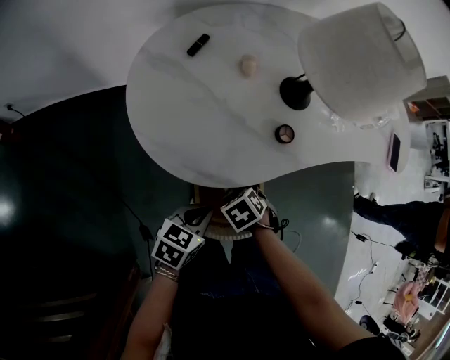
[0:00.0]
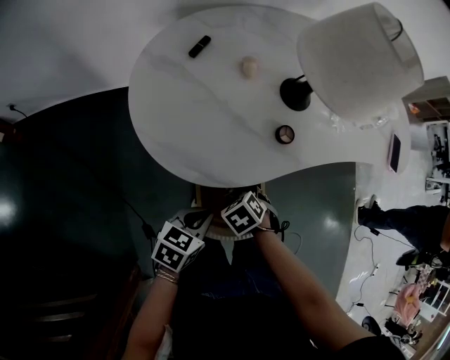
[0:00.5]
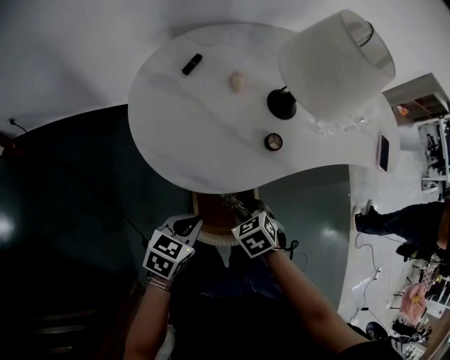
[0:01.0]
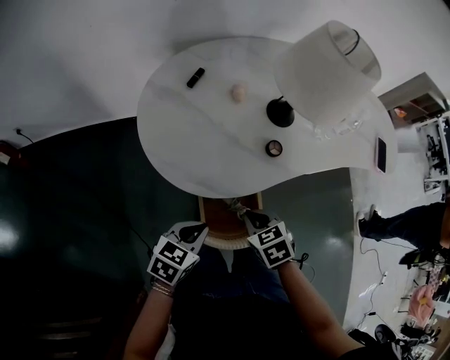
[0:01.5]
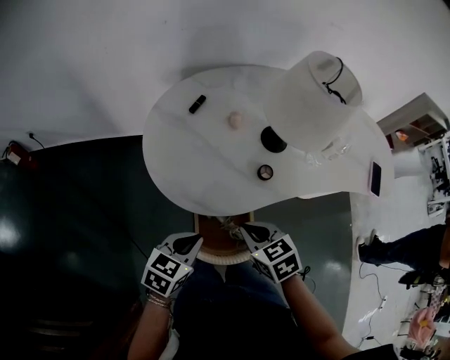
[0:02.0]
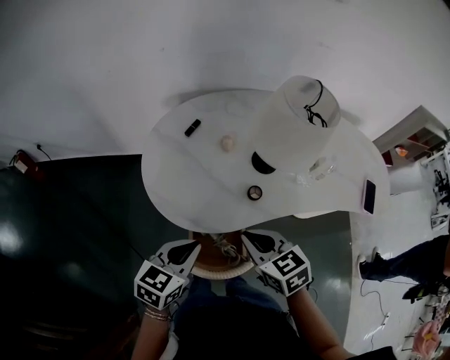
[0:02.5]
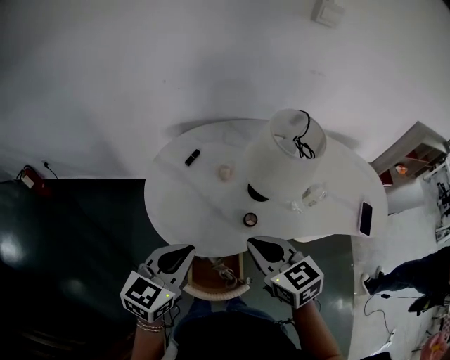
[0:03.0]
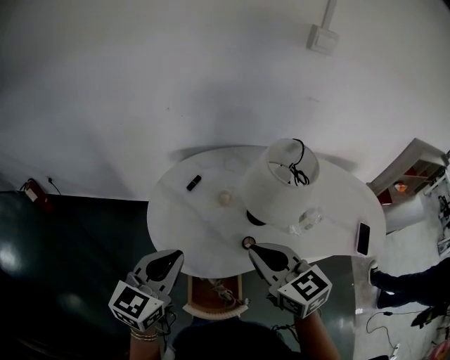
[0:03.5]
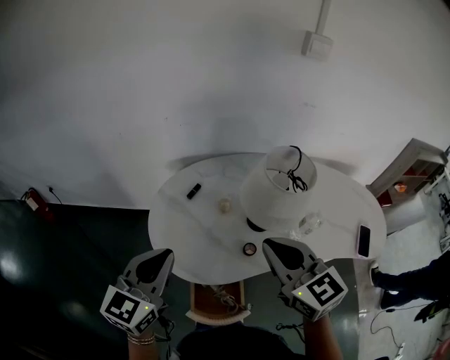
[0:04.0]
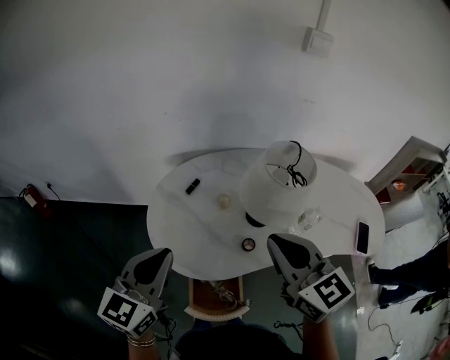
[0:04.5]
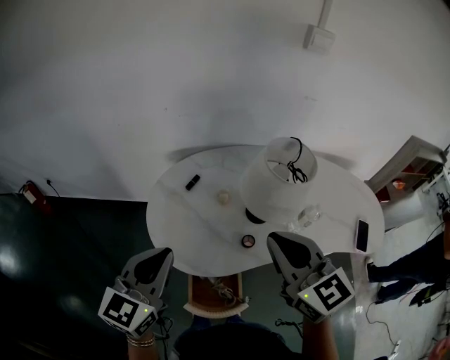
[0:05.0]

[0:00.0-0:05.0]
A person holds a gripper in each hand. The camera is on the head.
0:00.0 to 0:02.5: The right gripper heads upward, covering roughly 25 cm, points its fingers about 40 degrees further upward, and closes up, while the left gripper travels upward by some 15 cm, and rotates roughly 20 degrees.
0:02.5 to 0:05.0: The grippers both shift upward by roughly 20 cm. The left gripper rotates roughly 30 degrees, while the right gripper rotates approximately 30 degrees.

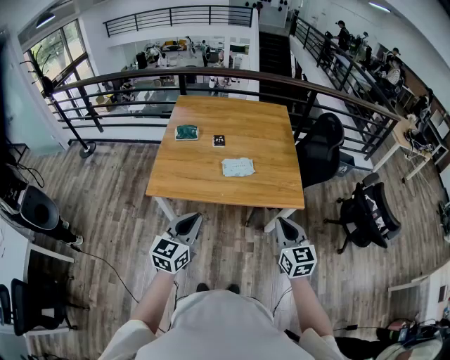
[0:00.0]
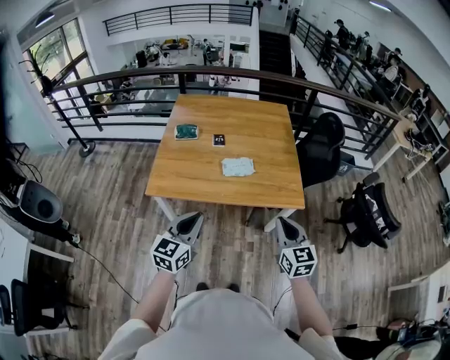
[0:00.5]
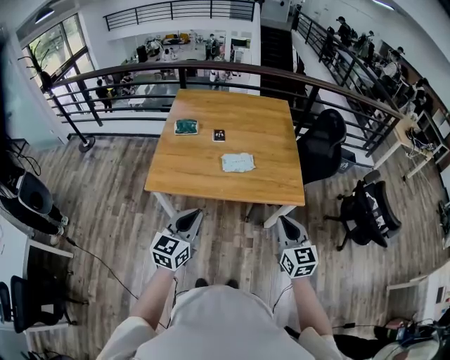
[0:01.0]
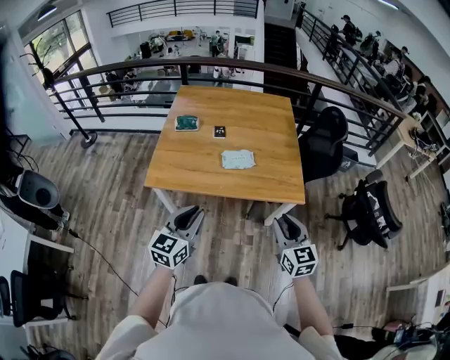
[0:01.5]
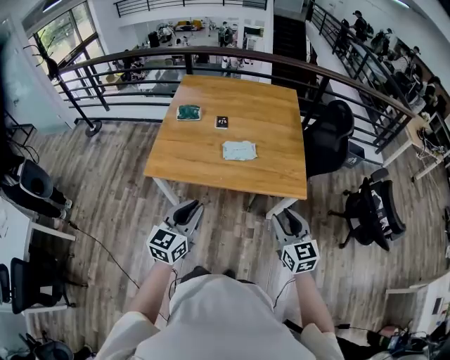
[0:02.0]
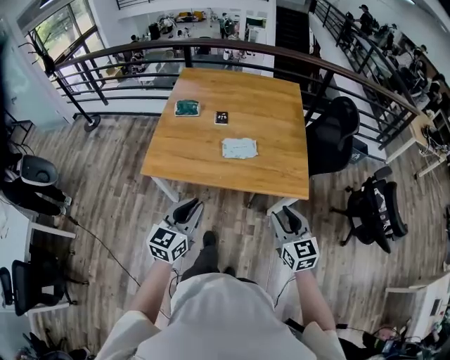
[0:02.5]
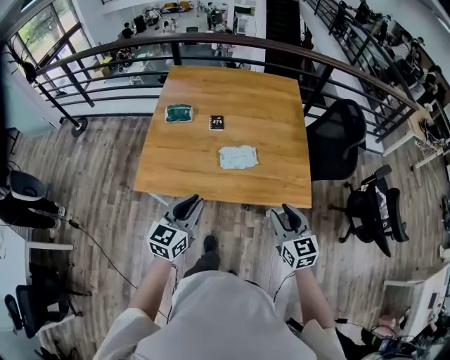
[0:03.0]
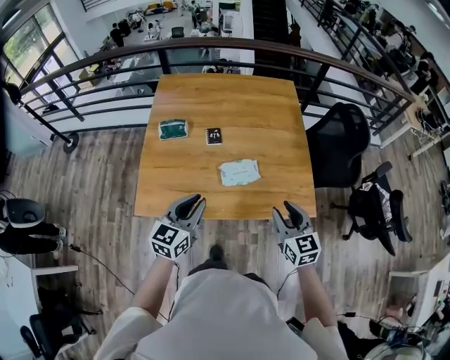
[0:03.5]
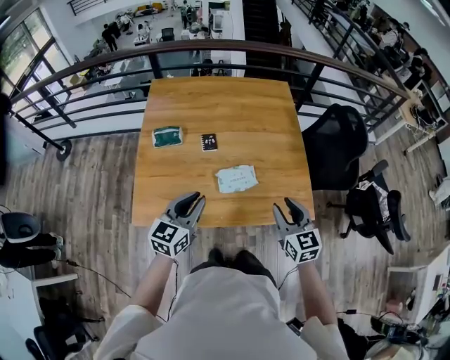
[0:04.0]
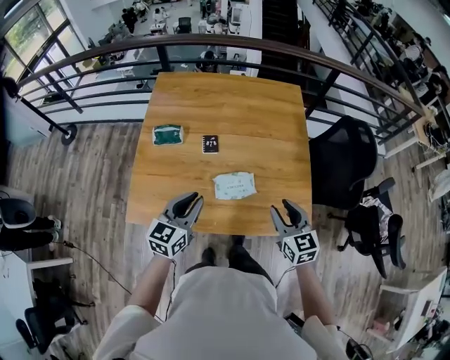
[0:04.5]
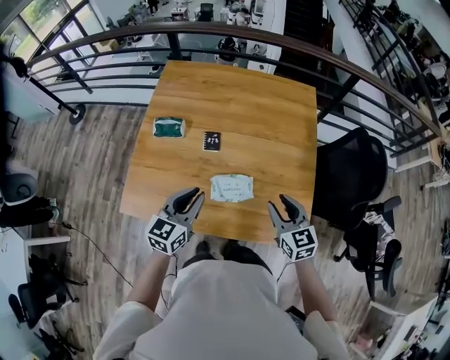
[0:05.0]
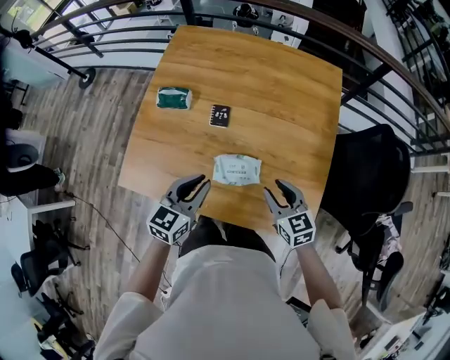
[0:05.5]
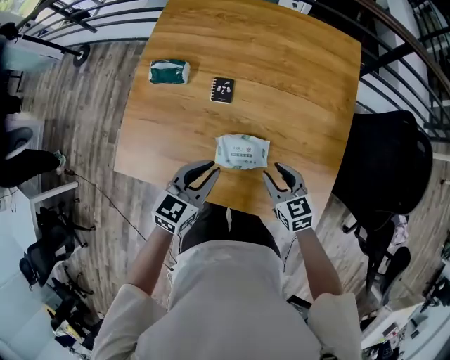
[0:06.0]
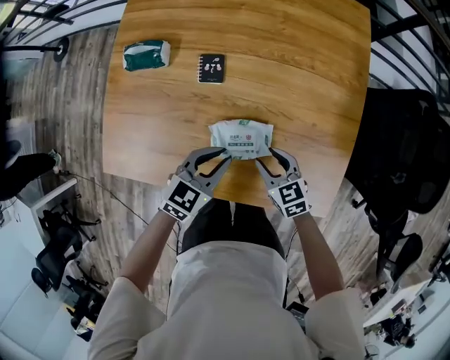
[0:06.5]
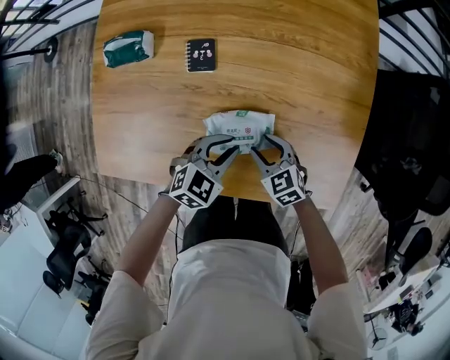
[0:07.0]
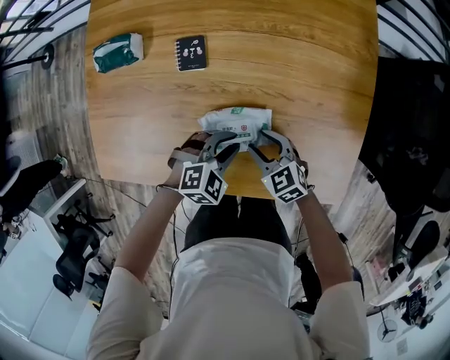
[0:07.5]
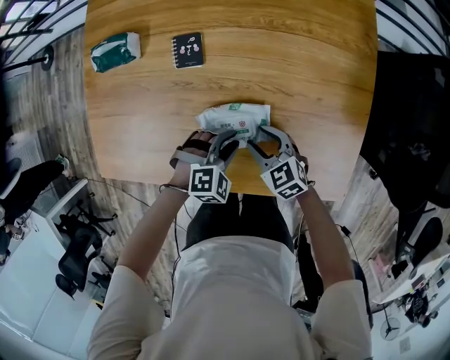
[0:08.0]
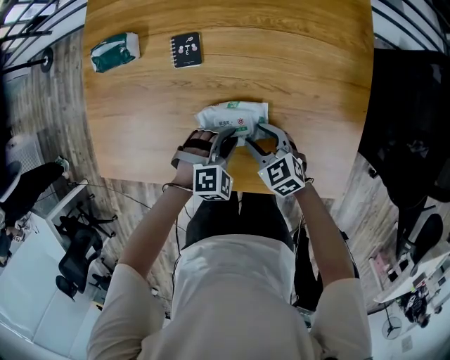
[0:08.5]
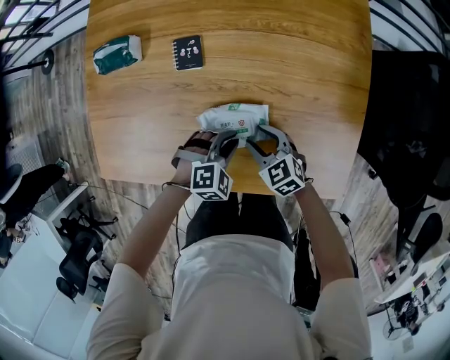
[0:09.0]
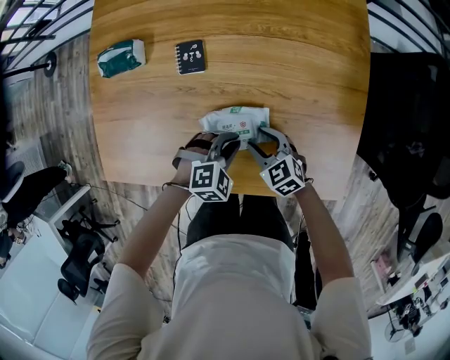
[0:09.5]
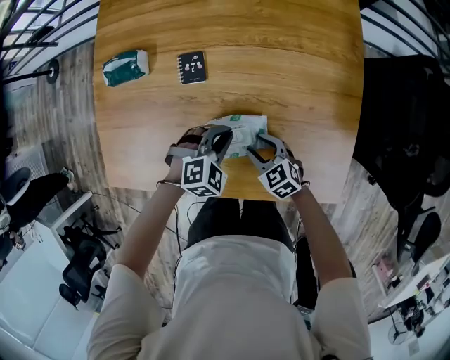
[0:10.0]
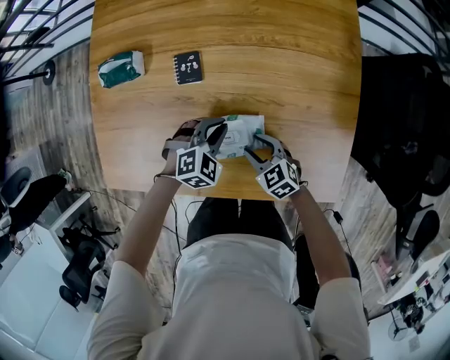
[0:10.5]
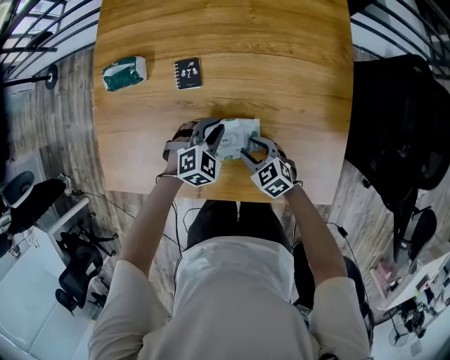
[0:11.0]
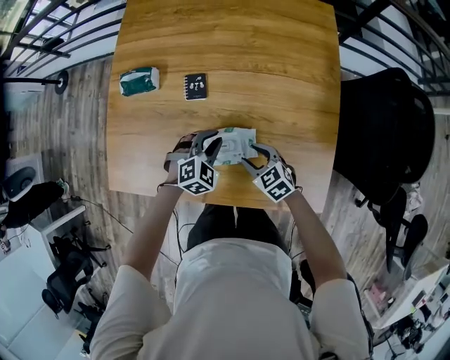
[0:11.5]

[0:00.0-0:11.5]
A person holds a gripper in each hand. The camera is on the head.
0:00.0 to 0:02.0: The right gripper opens its fingers.
0:02.0 to 0:04.0: Both grippers travel together forward, approximately 30 cm.
0:04.0 to 0:06.0: The left gripper moves downward, forward and to the right, roughly 20 cm. Meanwhile the right gripper shifts approximately 25 cm downward and forward, and rotates approximately 30 degrees.
0:06.0 to 0:07.5: Both grippers travel together downward, about 20 cm. The left gripper swivels roughly 50 degrees.
0:07.5 to 0:09.5: The grippers move only a little.
0:09.5 to 0:11.5: The left gripper shifts approximately 10 cm forward and upward. The right gripper heads upward, covering about 5 cm.

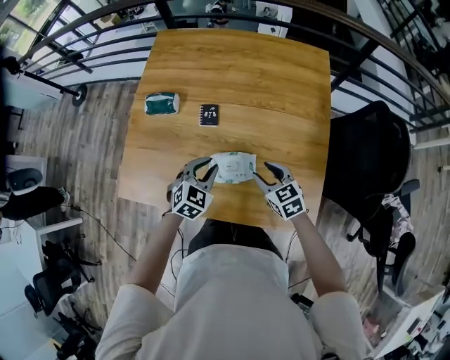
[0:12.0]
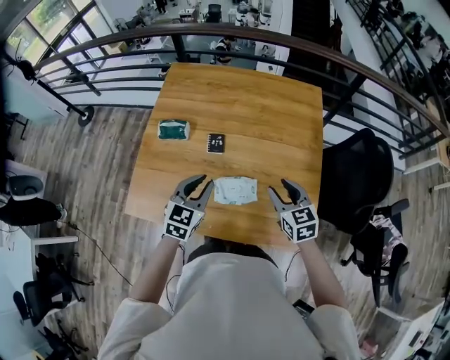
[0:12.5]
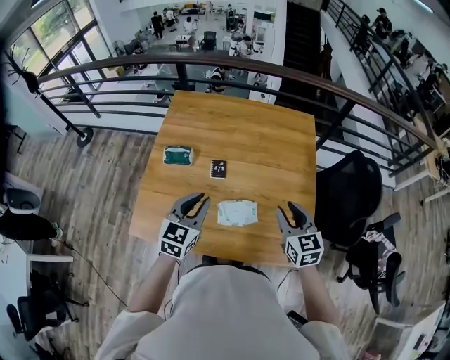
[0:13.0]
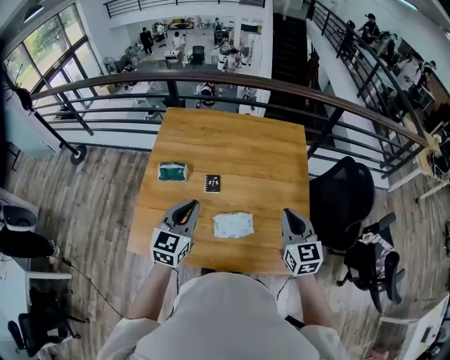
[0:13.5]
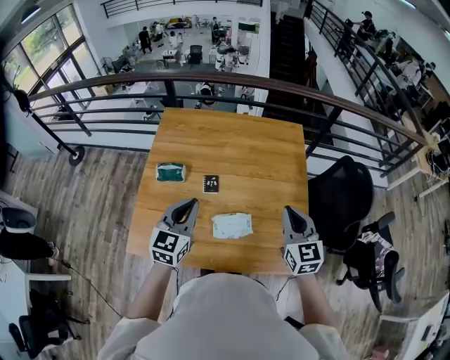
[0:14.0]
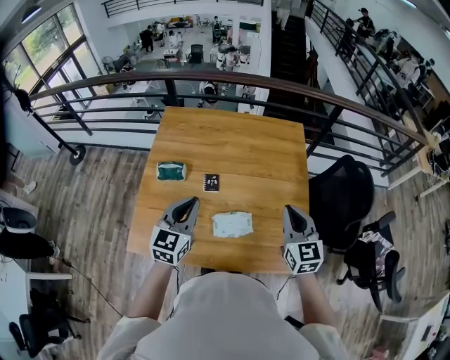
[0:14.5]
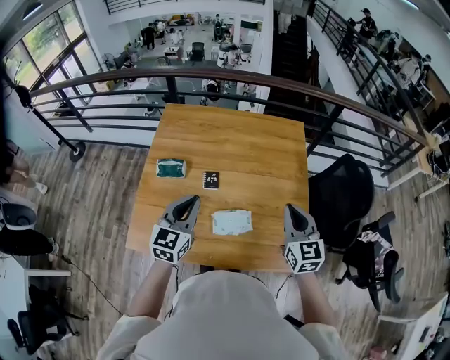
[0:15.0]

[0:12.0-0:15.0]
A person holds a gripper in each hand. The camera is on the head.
0:12.0 to 0:13.5: Both grippers travel together upward, roughly 25 cm. The left gripper swivels roughly 30 degrees, while the right gripper swivels about 40 degrees, and closes.
0:13.5 to 0:15.0: The grippers move only a little.

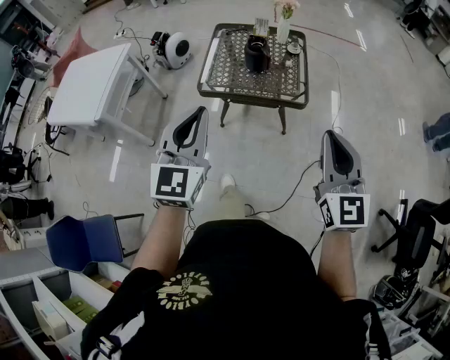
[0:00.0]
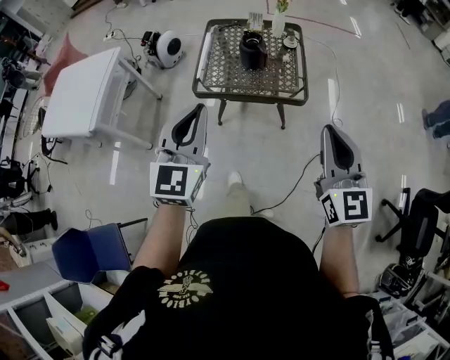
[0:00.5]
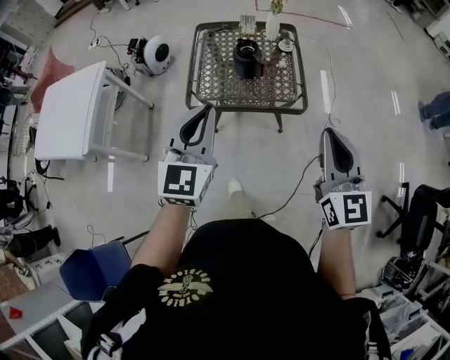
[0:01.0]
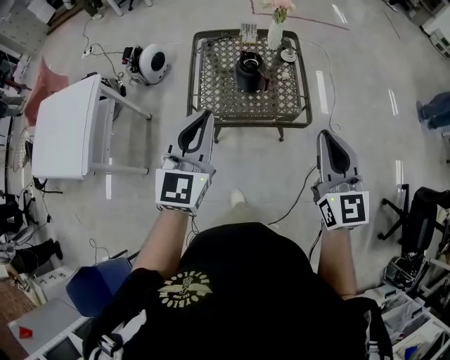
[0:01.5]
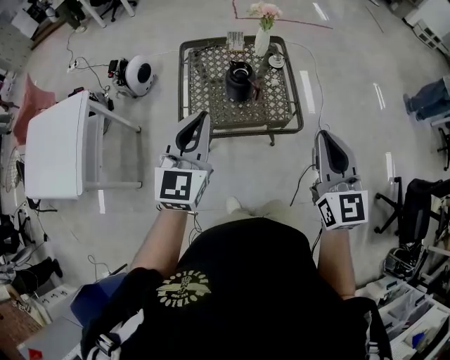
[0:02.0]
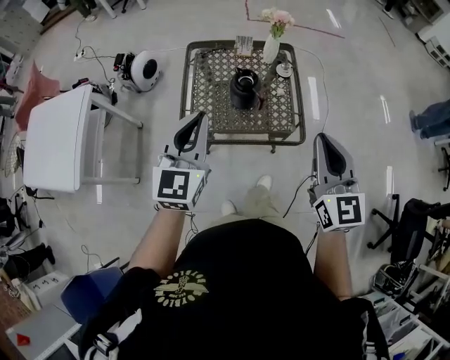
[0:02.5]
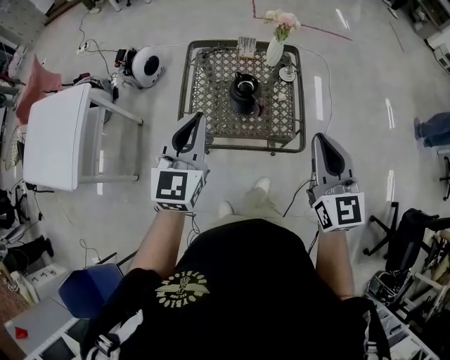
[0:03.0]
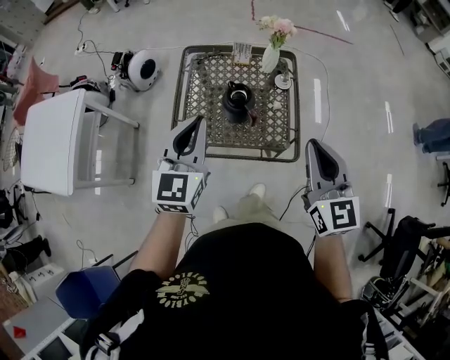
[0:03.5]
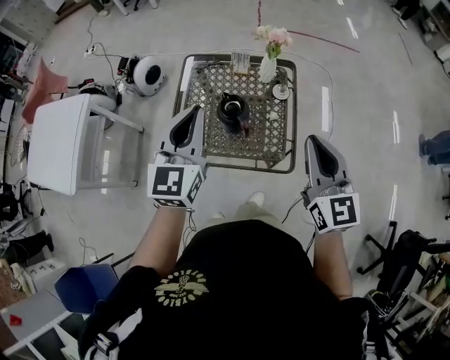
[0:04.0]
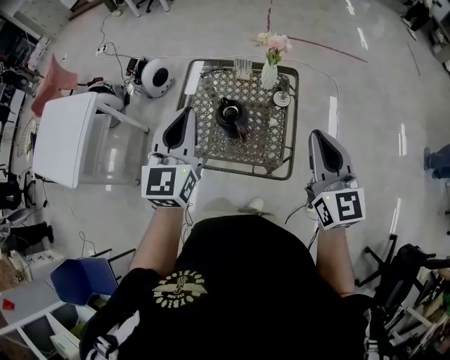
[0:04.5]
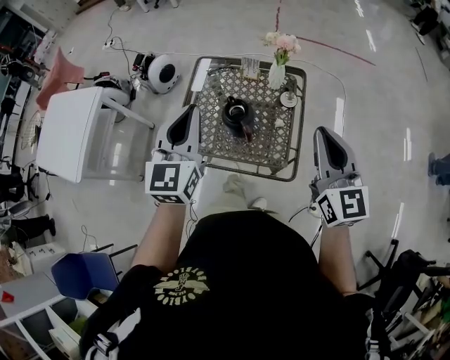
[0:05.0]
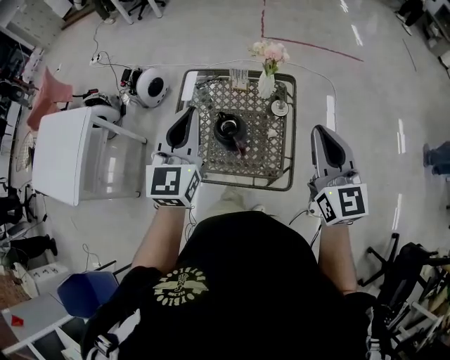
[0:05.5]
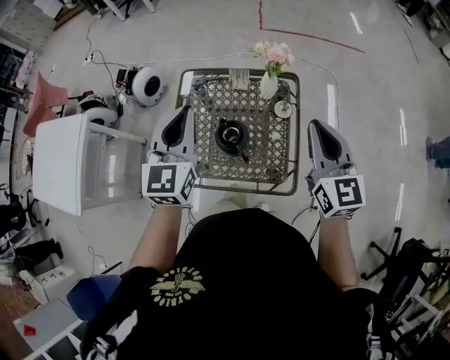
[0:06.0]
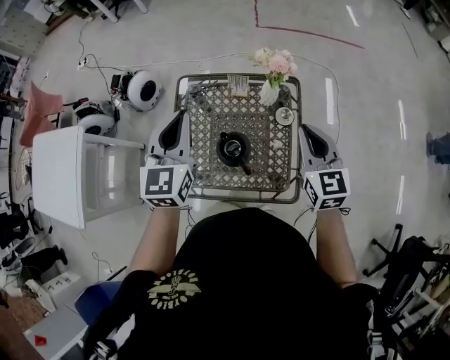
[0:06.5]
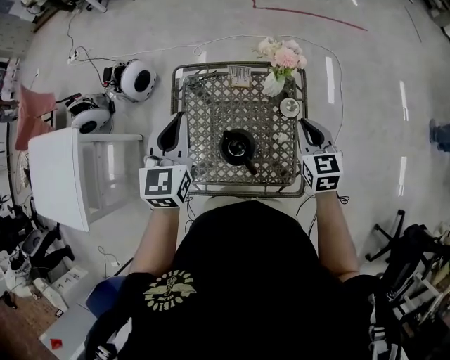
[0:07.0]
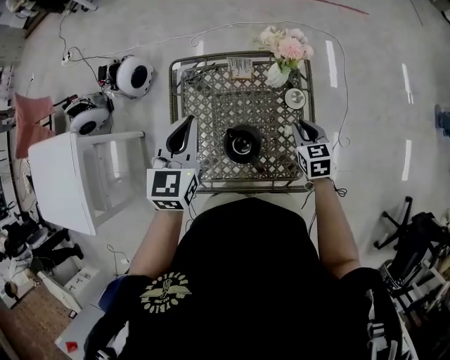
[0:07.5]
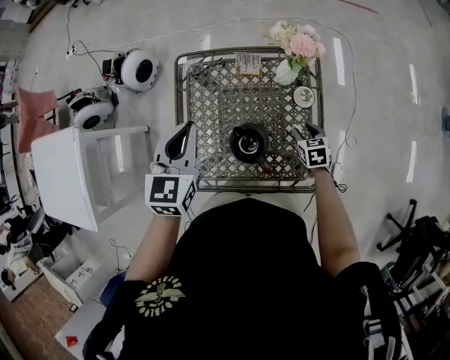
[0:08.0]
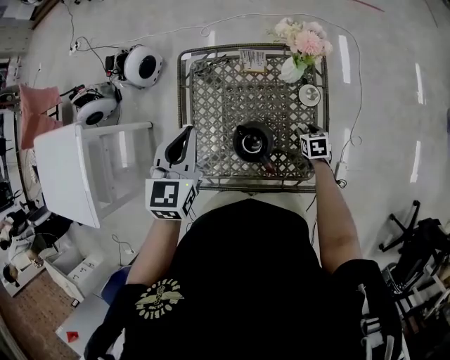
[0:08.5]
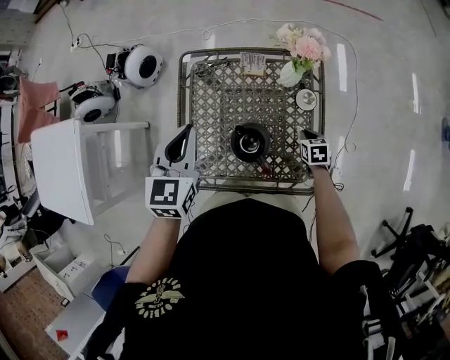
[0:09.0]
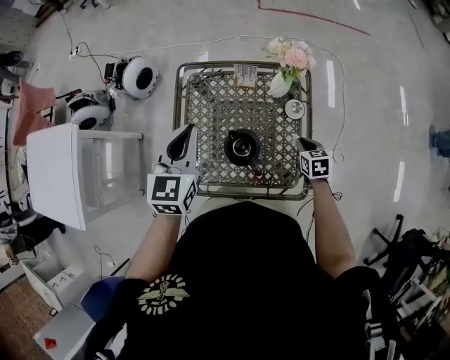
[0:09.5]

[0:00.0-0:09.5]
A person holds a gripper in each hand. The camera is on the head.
0:00.0 to 0:02.0: The grippers both shift forward by approximately 25 cm.
0:02.0 to 0:04.0: The right gripper goes about 20 cm forward. Meanwhile the left gripper shifts about 20 cm forward and to the right.
0:04.0 to 0:05.5: Both grippers travel together forward, roughly 5 cm.
0:05.5 to 0:07.5: The right gripper heads downward and forward, covering some 40 cm, and angles its fingers downward, by some 40 degrees. The left gripper shifts some 25 cm forward and downward, and swivels roughly 20 degrees.
0:07.5 to 0:09.5: The right gripper heads downward, covering about 5 cm, and opens and closes again.
